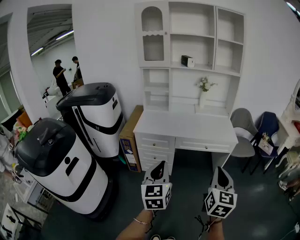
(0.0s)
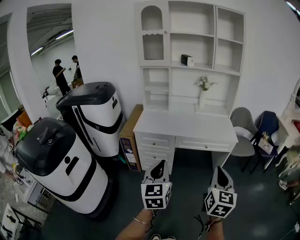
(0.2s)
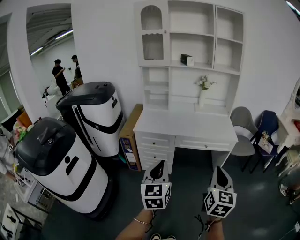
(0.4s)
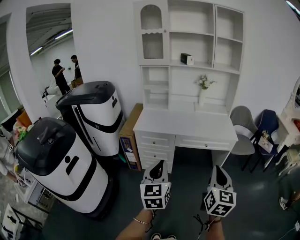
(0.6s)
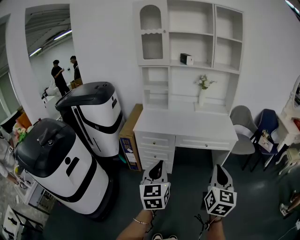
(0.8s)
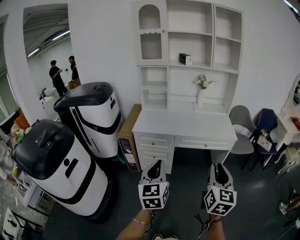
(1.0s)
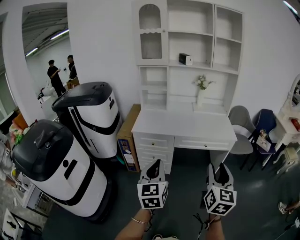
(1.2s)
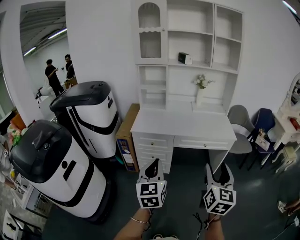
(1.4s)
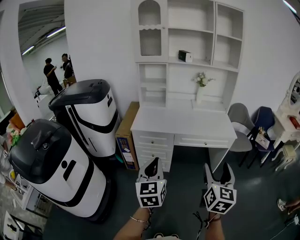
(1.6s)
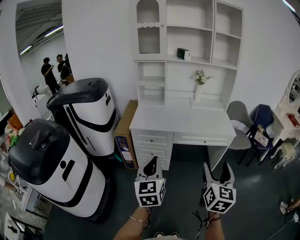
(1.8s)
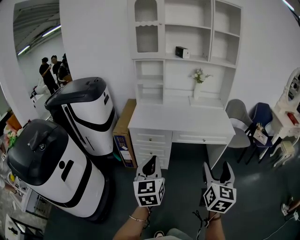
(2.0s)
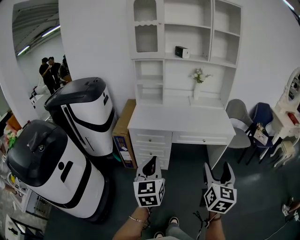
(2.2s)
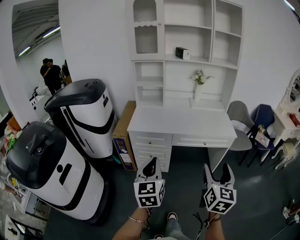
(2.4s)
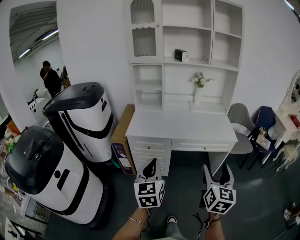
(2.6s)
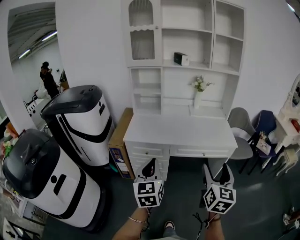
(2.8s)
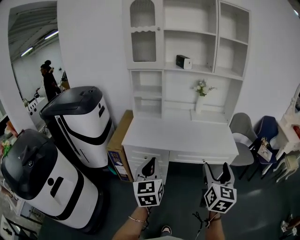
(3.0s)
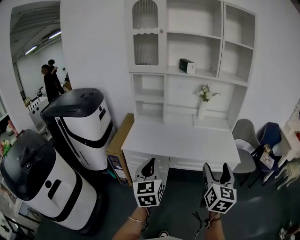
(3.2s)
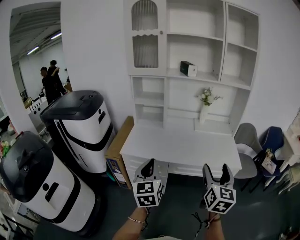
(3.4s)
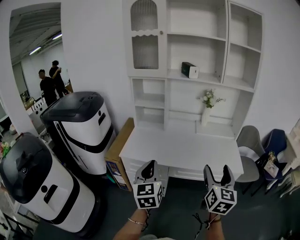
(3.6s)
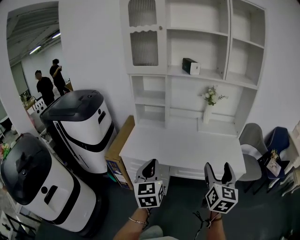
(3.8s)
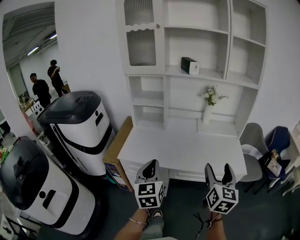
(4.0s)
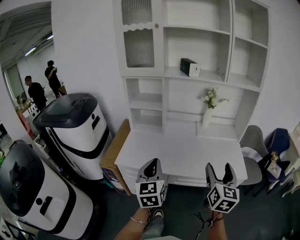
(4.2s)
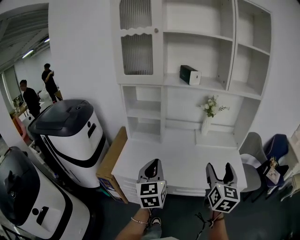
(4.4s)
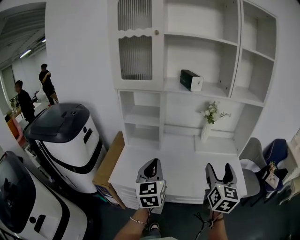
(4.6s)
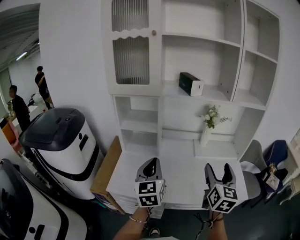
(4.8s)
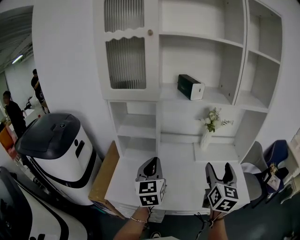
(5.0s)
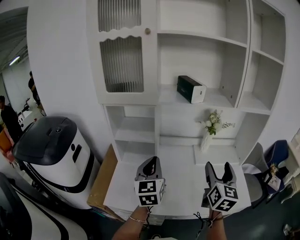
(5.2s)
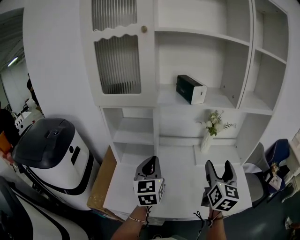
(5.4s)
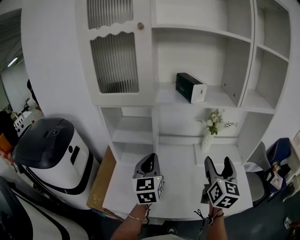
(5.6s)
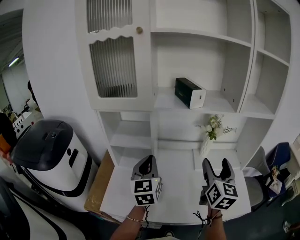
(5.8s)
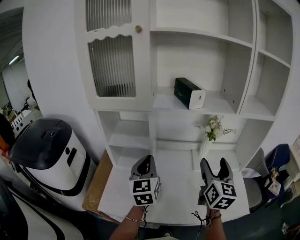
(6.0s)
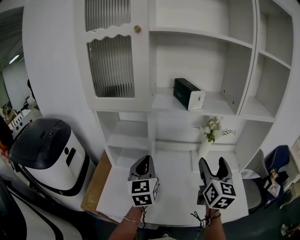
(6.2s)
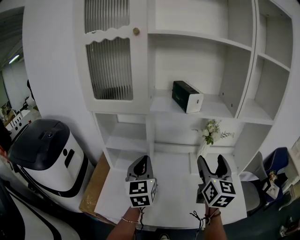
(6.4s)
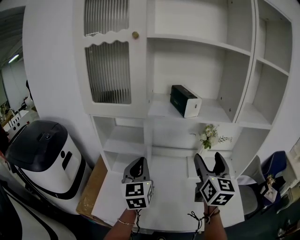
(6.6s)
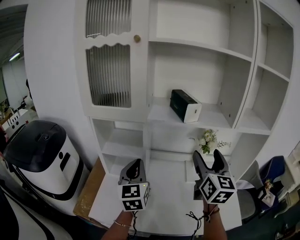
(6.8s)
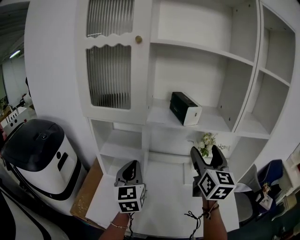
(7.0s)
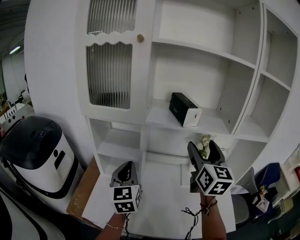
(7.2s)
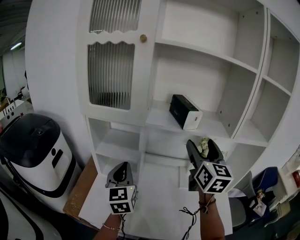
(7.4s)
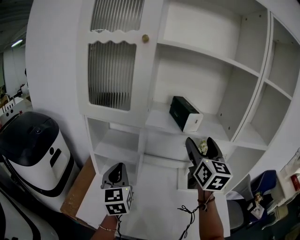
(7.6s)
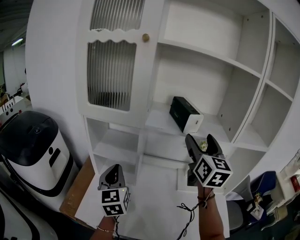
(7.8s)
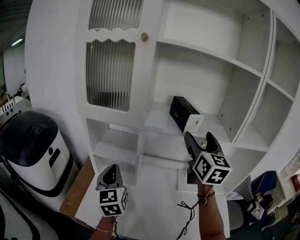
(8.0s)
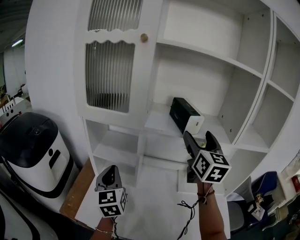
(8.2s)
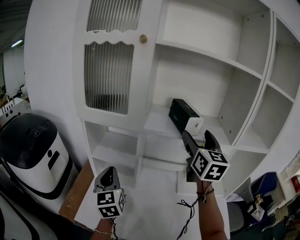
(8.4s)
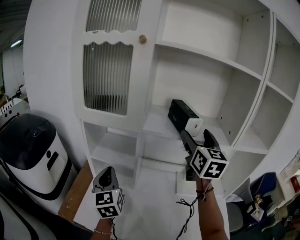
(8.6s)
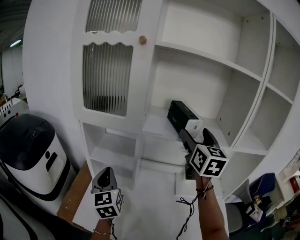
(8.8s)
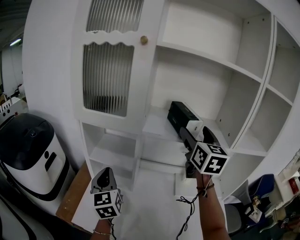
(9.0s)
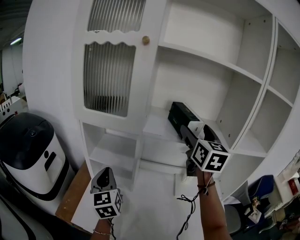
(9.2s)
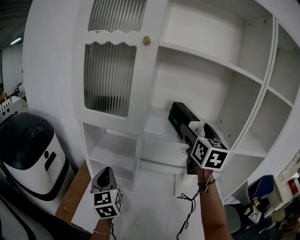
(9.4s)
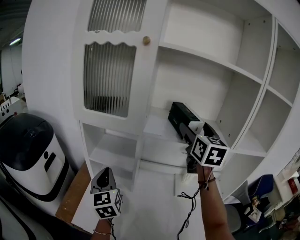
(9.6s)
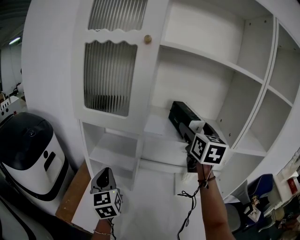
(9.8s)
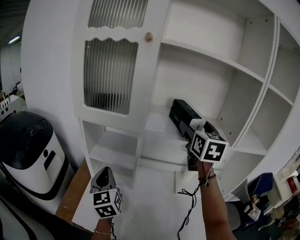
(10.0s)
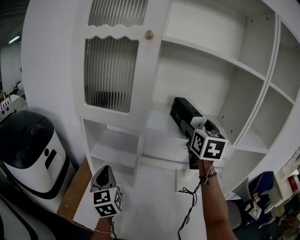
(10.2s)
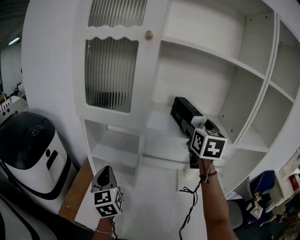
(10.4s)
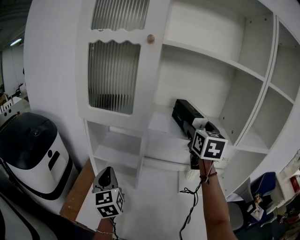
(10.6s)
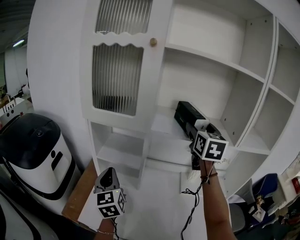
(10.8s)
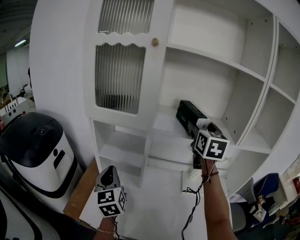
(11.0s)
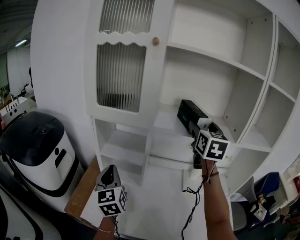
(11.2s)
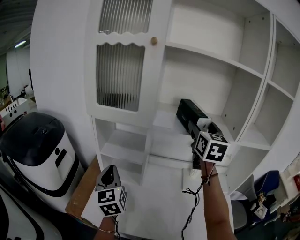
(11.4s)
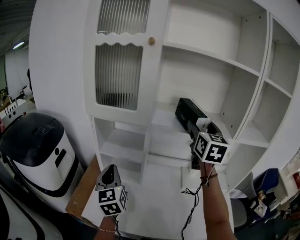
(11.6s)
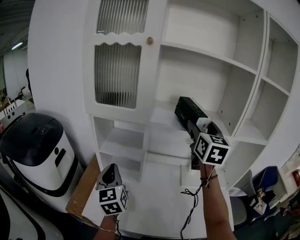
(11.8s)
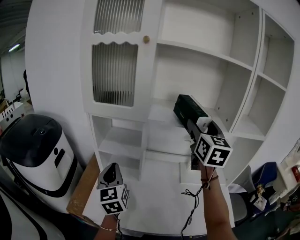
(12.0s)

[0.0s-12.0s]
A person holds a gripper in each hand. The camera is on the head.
0.0s to 1.6s: The left gripper travels to the left by about 5 cm. Meanwhile the right gripper opens.
1.6s to 3.0s: The grippers both shift forward by roughly 15 cm.
3.0s to 4.4s: Both grippers move forward, roughly 25 cm.
4.4s to 6.0s: The grippers both shift forward by some 25 cm.
6.0s to 7.6s: The right gripper is displaced upward and forward by approximately 20 cm; the left gripper moves to the left, some 5 cm.
7.6s to 9.0s: The right gripper heads forward, covering approximately 5 cm.
9.0s to 10.4s: There are only small adjustments of the grippers.
10.4s to 12.0s: The left gripper shifts roughly 5 cm backward; the right gripper is displaced backward by some 10 cm.

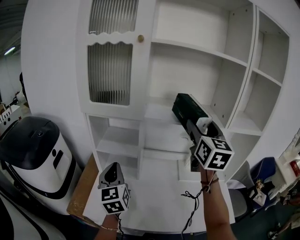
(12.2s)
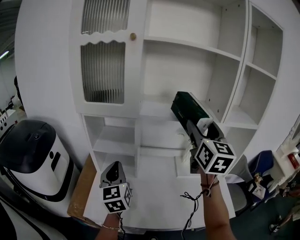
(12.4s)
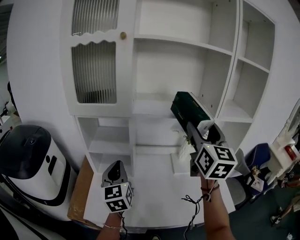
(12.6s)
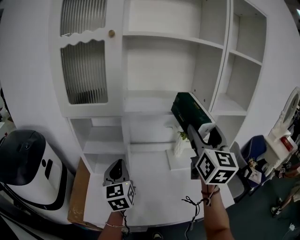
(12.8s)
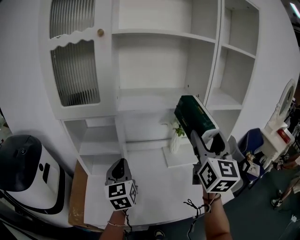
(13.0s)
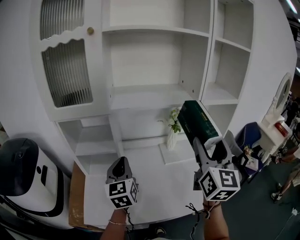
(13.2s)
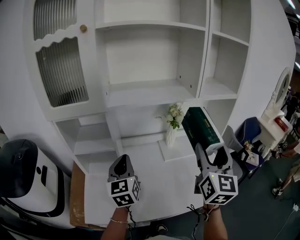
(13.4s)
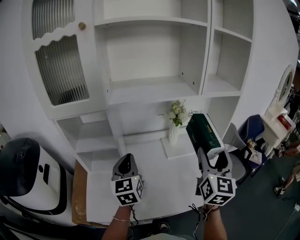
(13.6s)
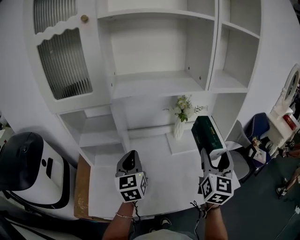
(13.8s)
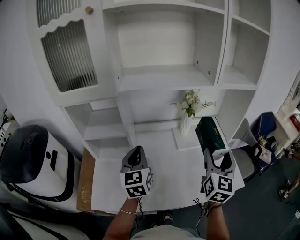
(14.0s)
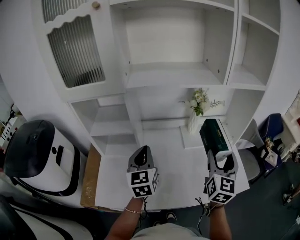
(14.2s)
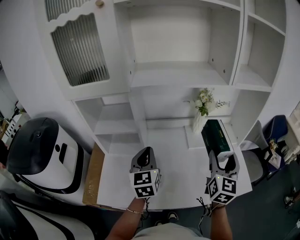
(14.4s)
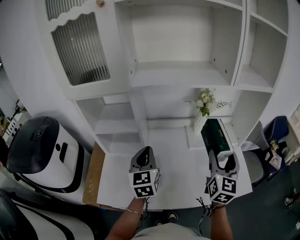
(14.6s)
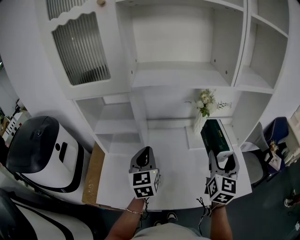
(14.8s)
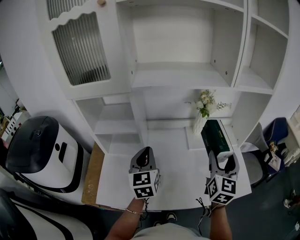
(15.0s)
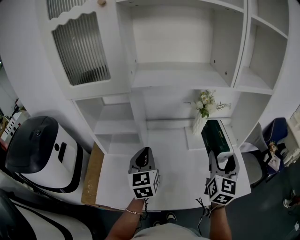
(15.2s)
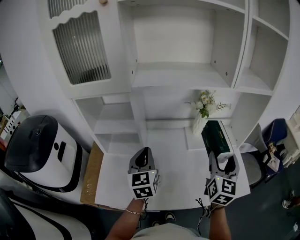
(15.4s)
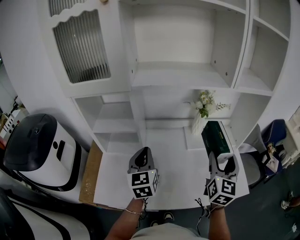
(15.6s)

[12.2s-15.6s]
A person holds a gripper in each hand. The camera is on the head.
12.2s to 13.8s: The right gripper travels downward, to the right and backward by approximately 25 cm, and swivels some 30 degrees; the left gripper moves to the right, about 15 cm.
13.8s to 15.6s: The right gripper travels downward by roughly 5 cm.

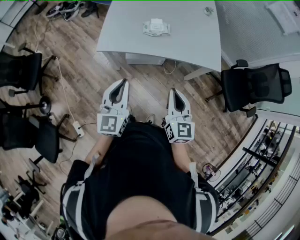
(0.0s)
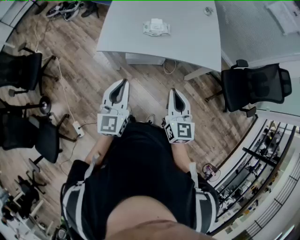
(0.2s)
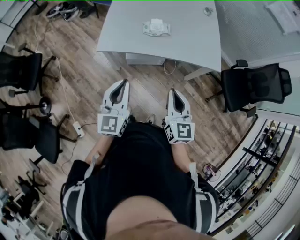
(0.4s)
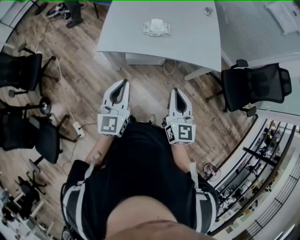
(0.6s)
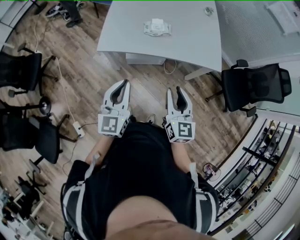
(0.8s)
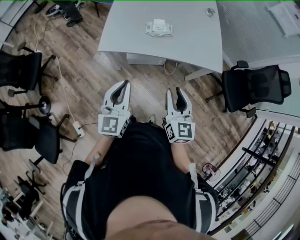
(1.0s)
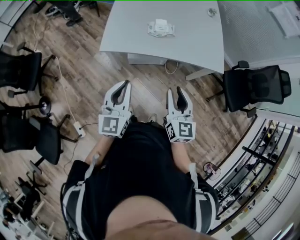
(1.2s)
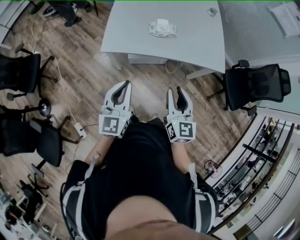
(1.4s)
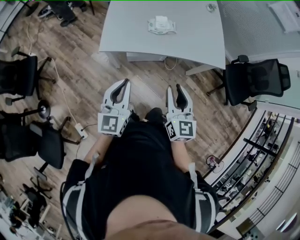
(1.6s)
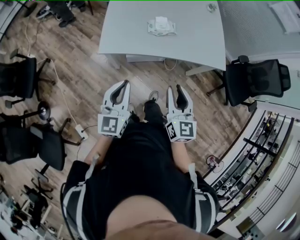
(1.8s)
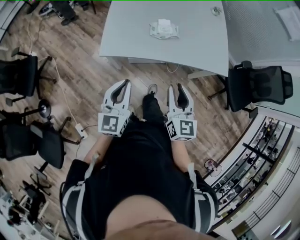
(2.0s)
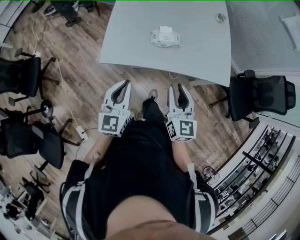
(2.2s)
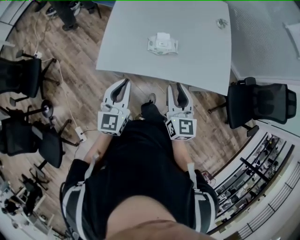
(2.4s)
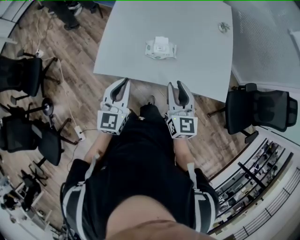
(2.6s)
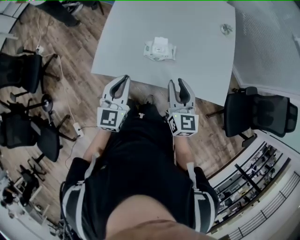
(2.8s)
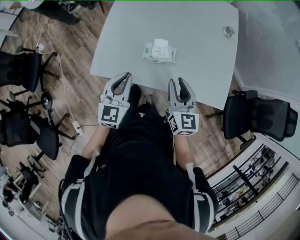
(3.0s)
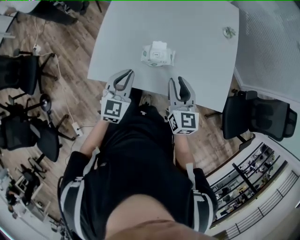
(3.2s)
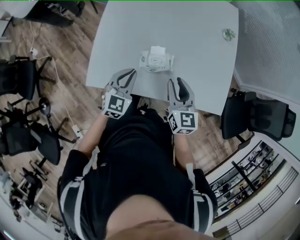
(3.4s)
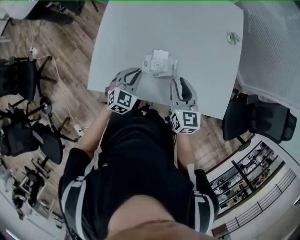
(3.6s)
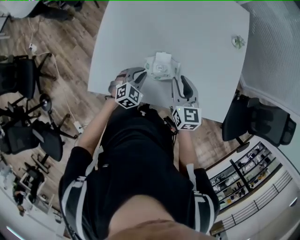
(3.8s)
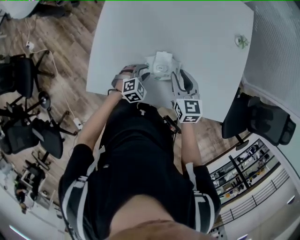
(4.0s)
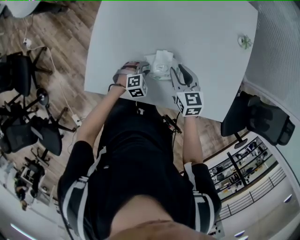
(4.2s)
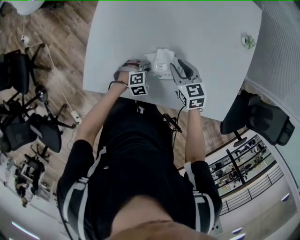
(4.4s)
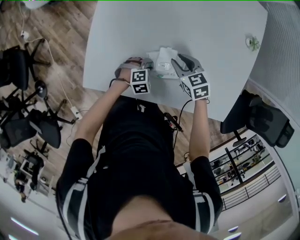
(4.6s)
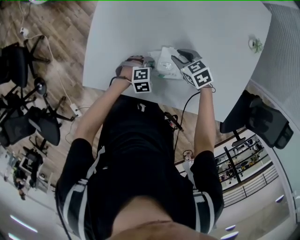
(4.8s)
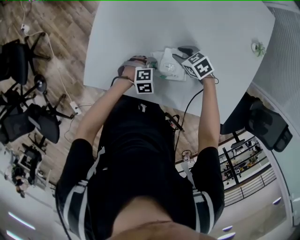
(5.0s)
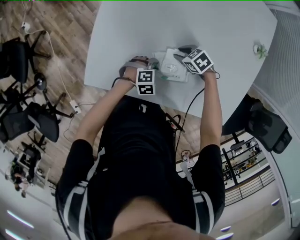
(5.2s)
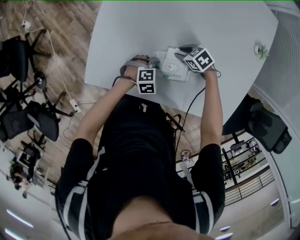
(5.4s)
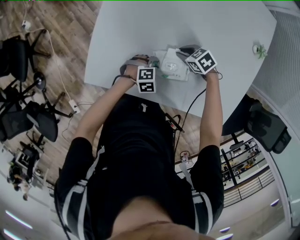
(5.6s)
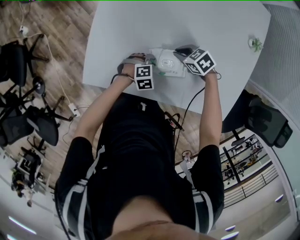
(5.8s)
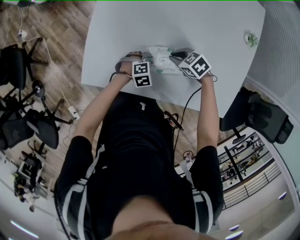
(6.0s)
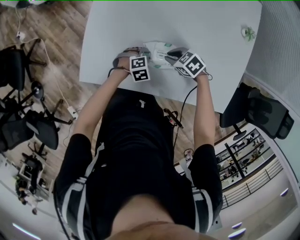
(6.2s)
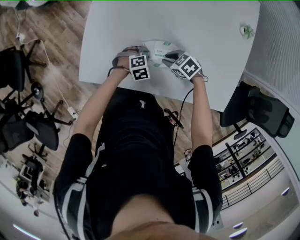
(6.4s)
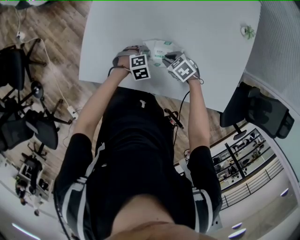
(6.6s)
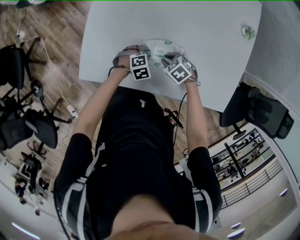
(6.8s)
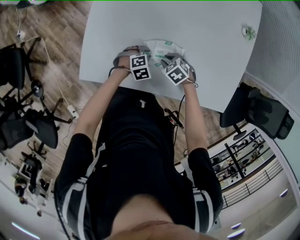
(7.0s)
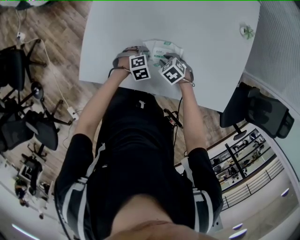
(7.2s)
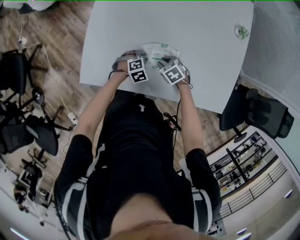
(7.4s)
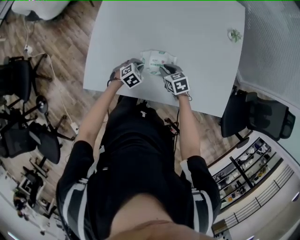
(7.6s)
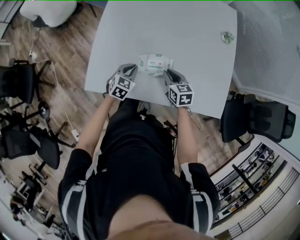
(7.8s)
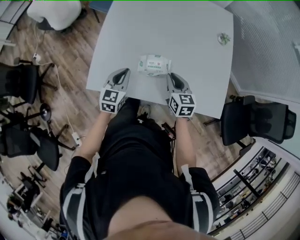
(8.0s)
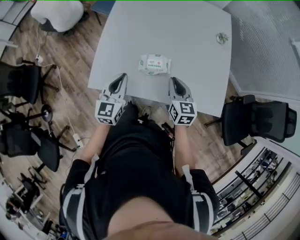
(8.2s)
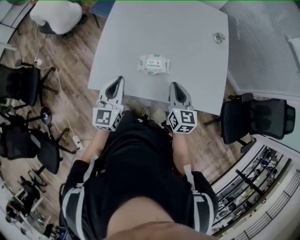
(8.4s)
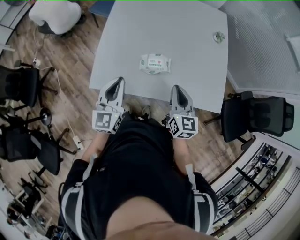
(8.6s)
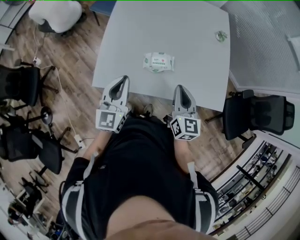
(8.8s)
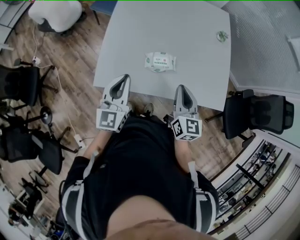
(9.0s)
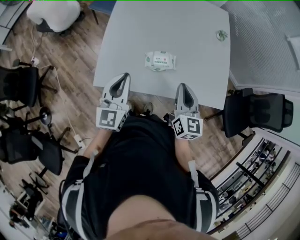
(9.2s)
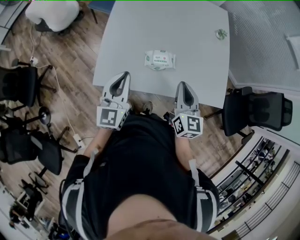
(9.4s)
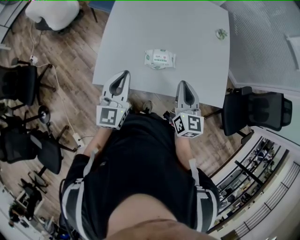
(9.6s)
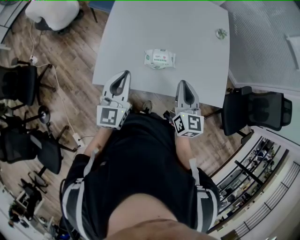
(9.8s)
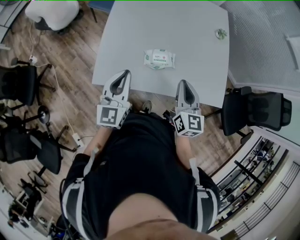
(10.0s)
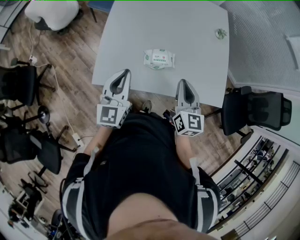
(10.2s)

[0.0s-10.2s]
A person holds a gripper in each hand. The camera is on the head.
0.0s to 1.4s: The grippers both shift to the left by approximately 5 cm. The right gripper opens up.
1.4s to 3.0s: The grippers both shift forward by some 35 cm.
3.0s to 4.4s: The left gripper moves downward and forward, some 40 cm, tips its fingers downward by about 50 degrees, and opens, while the right gripper travels forward and downward by about 30 cm, and rotates about 30 degrees.
4.4s to 5.8s: The right gripper goes about 10 cm downward, and swivels about 40 degrees.
5.8s to 7.2s: The right gripper moves approximately 10 cm.
7.2s to 8.8s: The two grippers go roughly 40 cm upward. The right gripper tips its fingers upward by about 60 degrees, and closes up, while the left gripper tilts its fingers some 60 degrees upward, and closes up.
8.8s to 10.2s: The grippers make only small movements.
